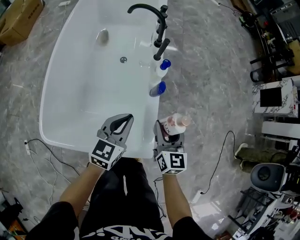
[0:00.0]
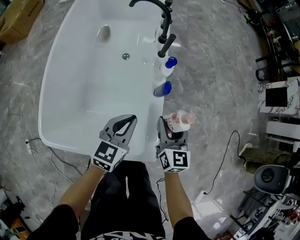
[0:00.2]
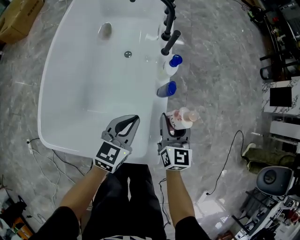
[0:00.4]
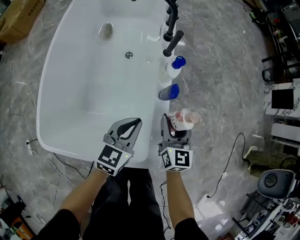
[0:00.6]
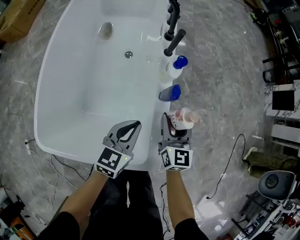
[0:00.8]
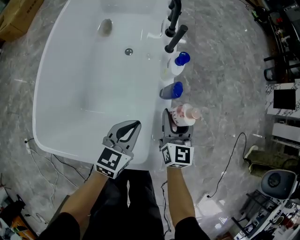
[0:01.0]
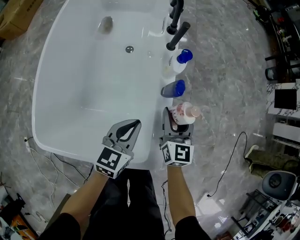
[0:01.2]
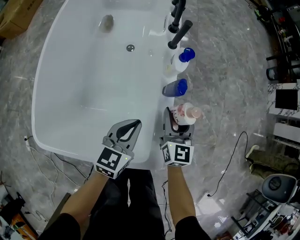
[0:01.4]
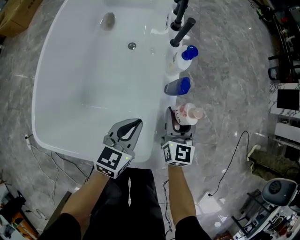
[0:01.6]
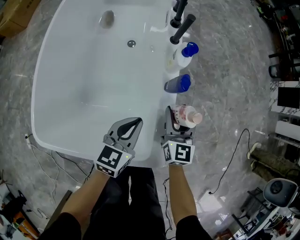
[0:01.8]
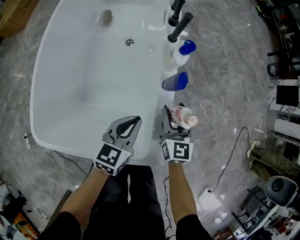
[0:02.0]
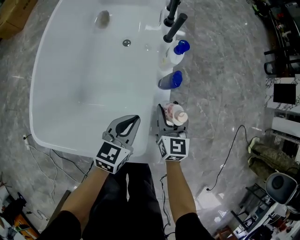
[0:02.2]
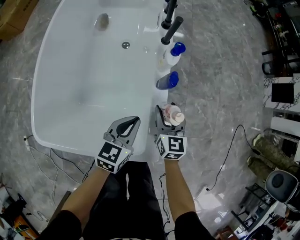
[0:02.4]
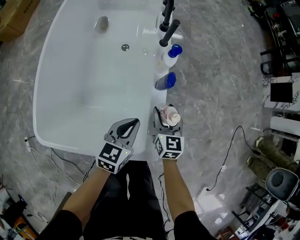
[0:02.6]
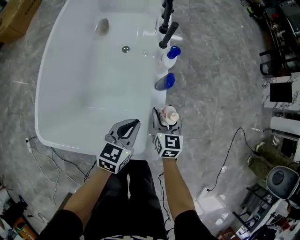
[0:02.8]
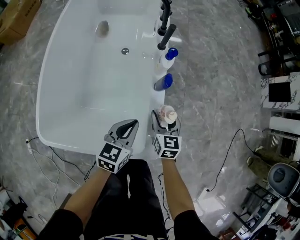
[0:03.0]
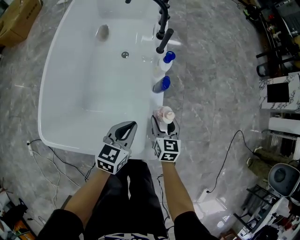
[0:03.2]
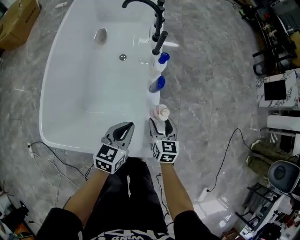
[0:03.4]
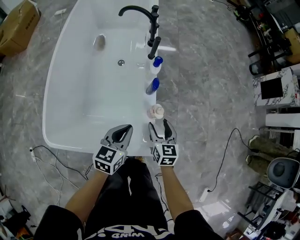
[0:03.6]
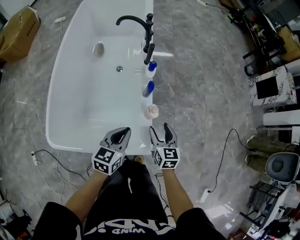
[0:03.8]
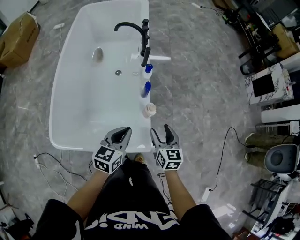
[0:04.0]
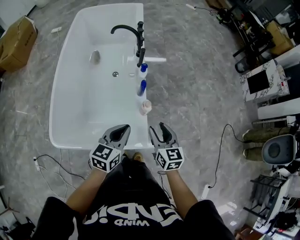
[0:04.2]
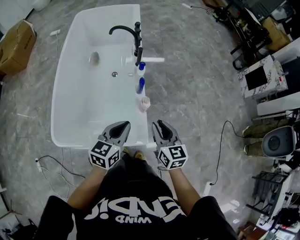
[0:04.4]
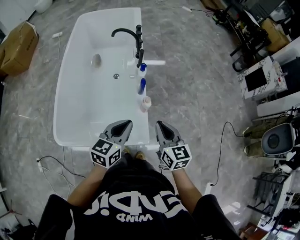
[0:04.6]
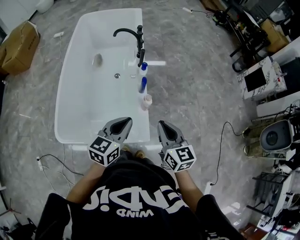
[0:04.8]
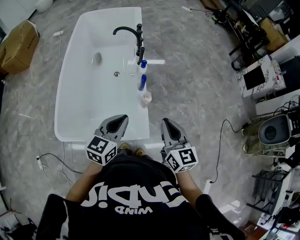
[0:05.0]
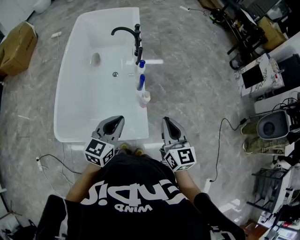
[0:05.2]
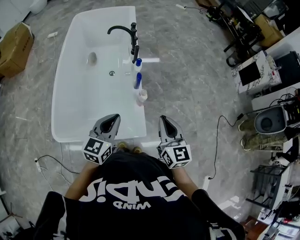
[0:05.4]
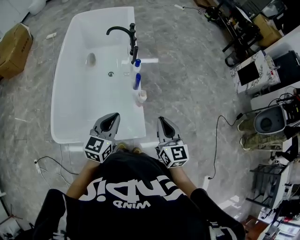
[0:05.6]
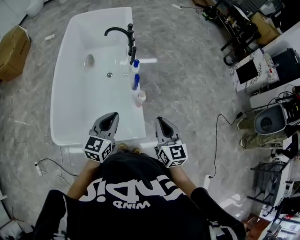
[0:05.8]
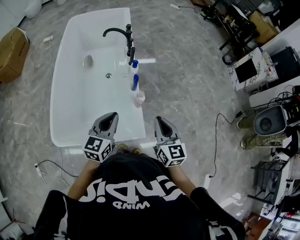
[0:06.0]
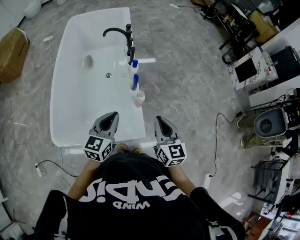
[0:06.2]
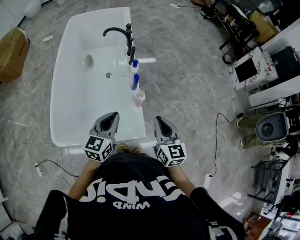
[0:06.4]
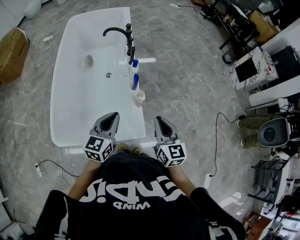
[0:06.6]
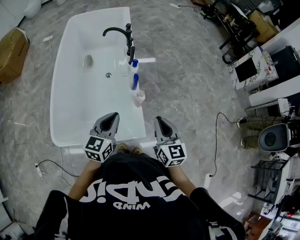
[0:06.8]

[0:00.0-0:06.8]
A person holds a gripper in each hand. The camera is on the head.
0:00.0 to 0:01.4: The left gripper travels downward by some 10 cm. Meanwhile the right gripper shifts roughly 15 cm downward and forward.
0:01.4 to 0:02.8: There are only small adjustments of the grippers.
0:02.8 to 0:04.0: The right gripper shifts approximately 20 cm upward, backward and to the right. The left gripper moves upward and backward, some 15 cm.
0:04.0 to 0:05.4: The left gripper shifts some 10 cm upward and backward. The right gripper travels upward and backward by approximately 20 cm, and closes up.
0:05.4 to 0:06.8: The grippers stay close to where they were, moving slightly.

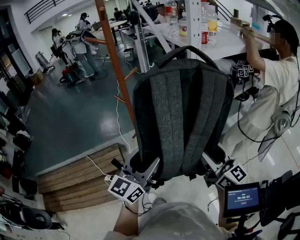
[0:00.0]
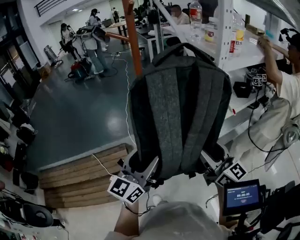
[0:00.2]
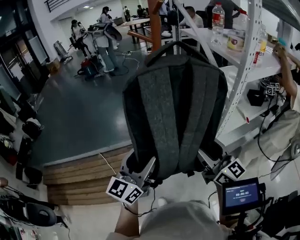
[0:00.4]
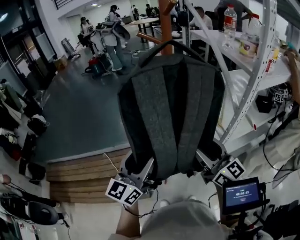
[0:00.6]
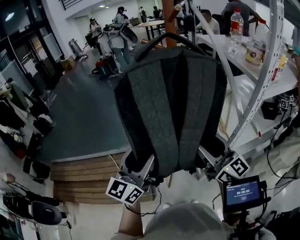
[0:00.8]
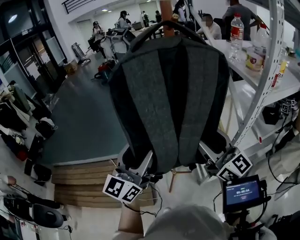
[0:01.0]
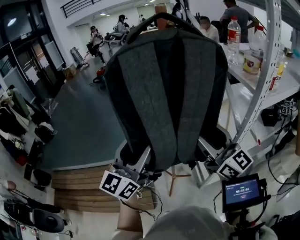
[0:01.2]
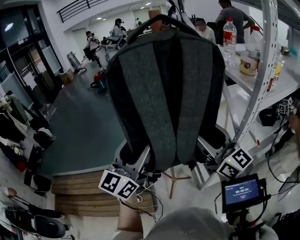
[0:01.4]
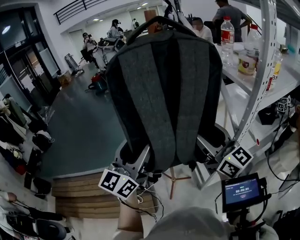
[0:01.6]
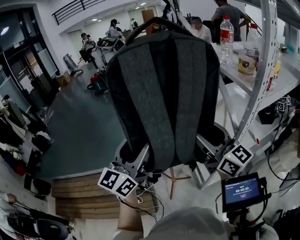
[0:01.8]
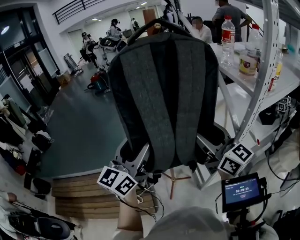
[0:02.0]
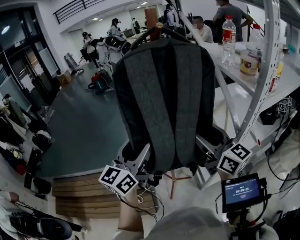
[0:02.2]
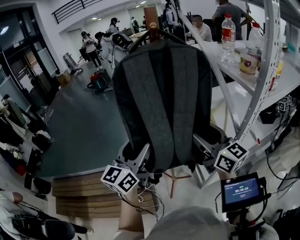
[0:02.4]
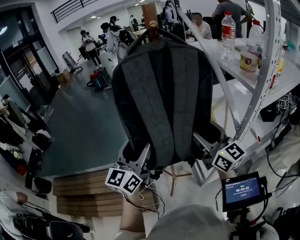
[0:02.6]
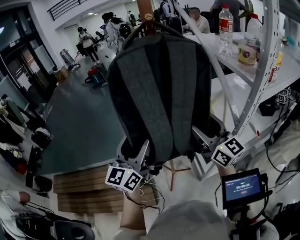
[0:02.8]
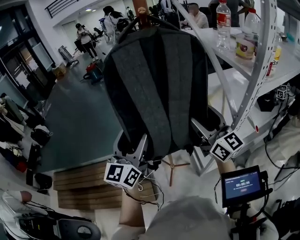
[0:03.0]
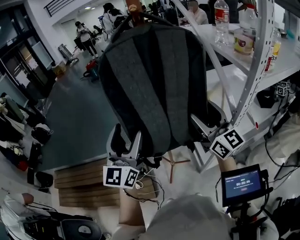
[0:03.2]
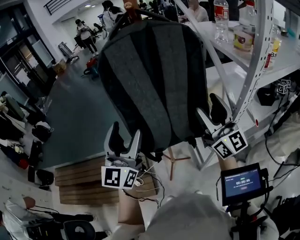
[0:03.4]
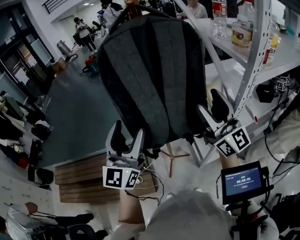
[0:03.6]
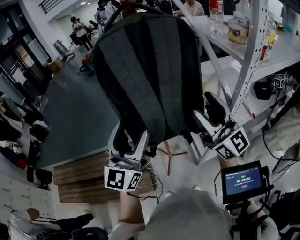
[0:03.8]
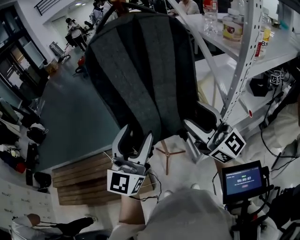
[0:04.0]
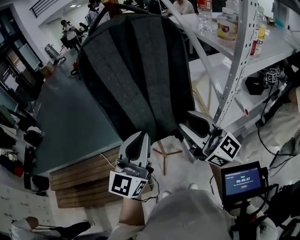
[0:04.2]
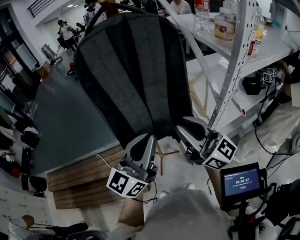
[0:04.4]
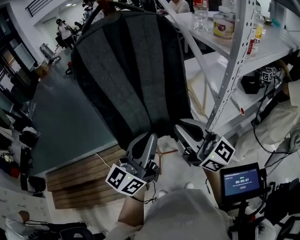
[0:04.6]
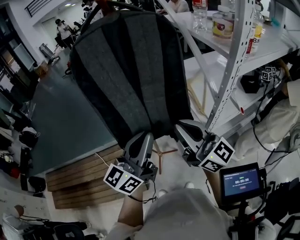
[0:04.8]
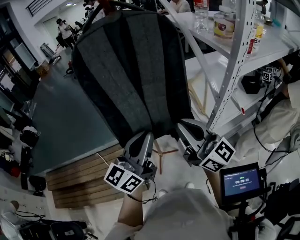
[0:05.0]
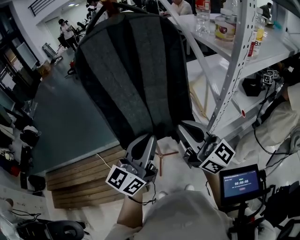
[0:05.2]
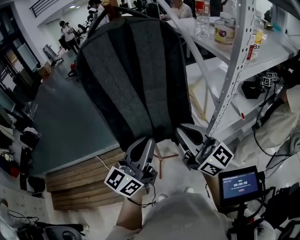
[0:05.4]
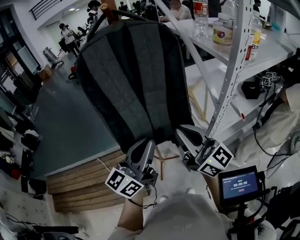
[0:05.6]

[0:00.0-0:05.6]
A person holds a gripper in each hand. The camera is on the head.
0:00.0 to 0:01.4: Both grippers move forward, to the left and upward, some 30 cm.
0:01.4 to 0:02.8: The right gripper moves some 5 cm, while the left gripper ends up roughly 5 cm from where it was.
0:02.8 to 0:04.2: The left gripper shifts roughly 10 cm backward and to the right, and closes up. The right gripper goes about 10 cm backward, and closes.
0:04.2 to 0:05.6: The right gripper closes up. The left gripper changes its angle by roughly 30 degrees.

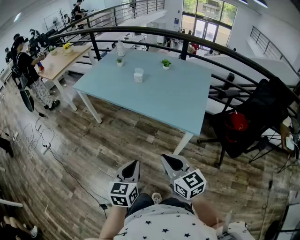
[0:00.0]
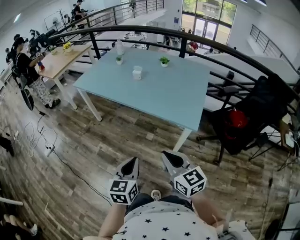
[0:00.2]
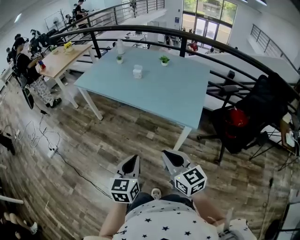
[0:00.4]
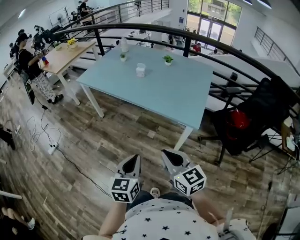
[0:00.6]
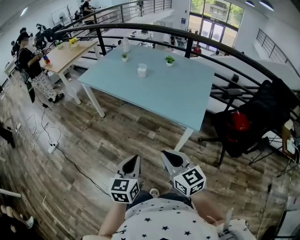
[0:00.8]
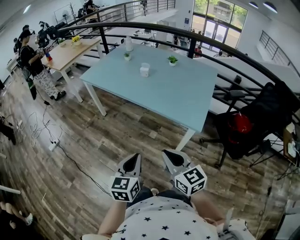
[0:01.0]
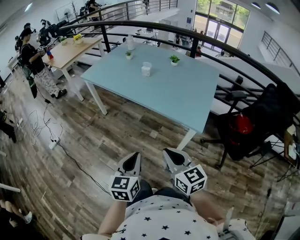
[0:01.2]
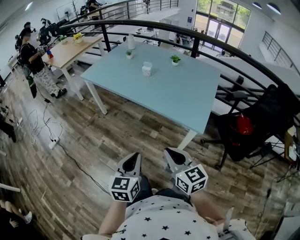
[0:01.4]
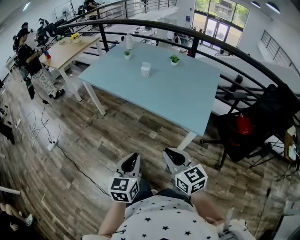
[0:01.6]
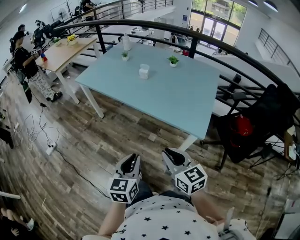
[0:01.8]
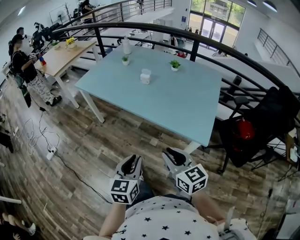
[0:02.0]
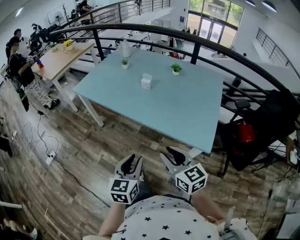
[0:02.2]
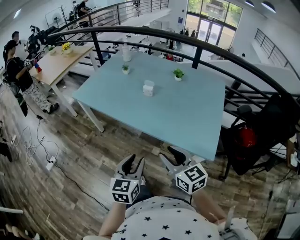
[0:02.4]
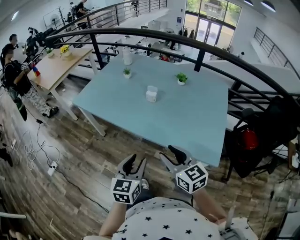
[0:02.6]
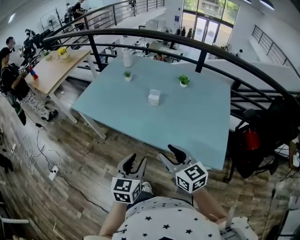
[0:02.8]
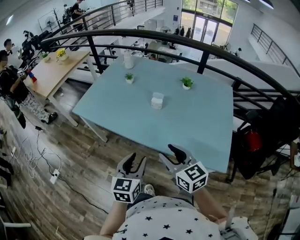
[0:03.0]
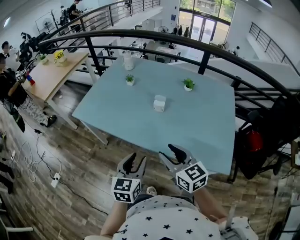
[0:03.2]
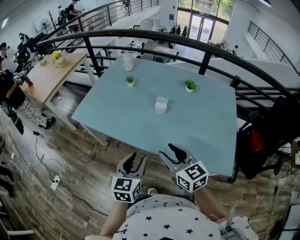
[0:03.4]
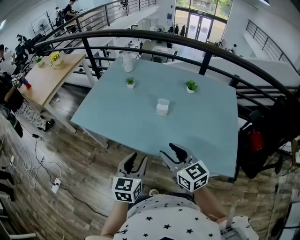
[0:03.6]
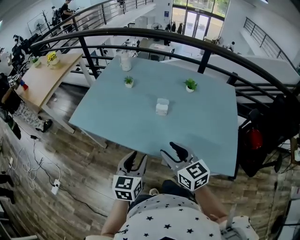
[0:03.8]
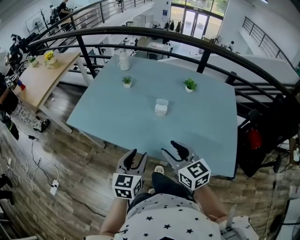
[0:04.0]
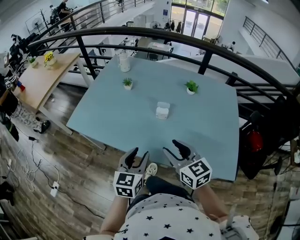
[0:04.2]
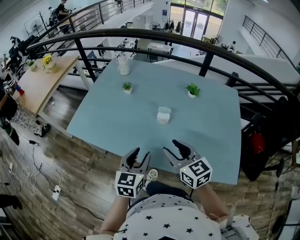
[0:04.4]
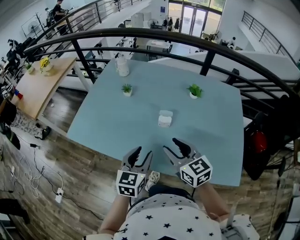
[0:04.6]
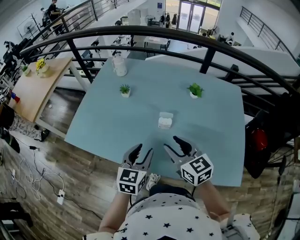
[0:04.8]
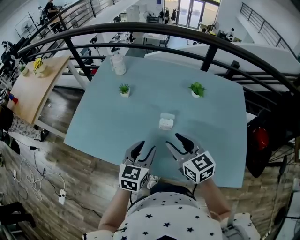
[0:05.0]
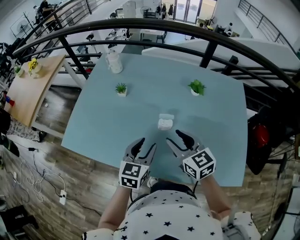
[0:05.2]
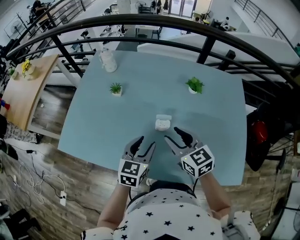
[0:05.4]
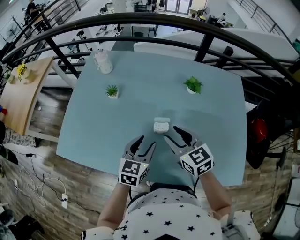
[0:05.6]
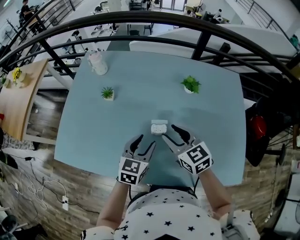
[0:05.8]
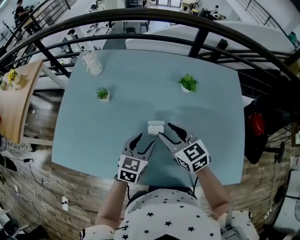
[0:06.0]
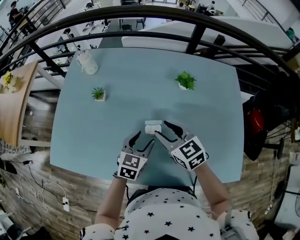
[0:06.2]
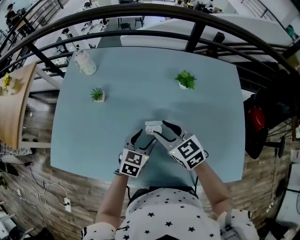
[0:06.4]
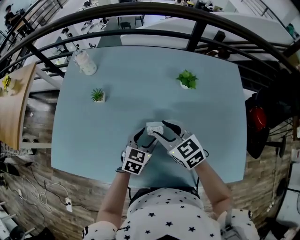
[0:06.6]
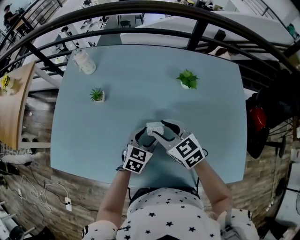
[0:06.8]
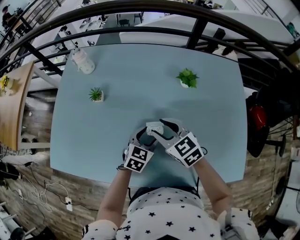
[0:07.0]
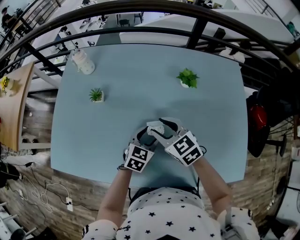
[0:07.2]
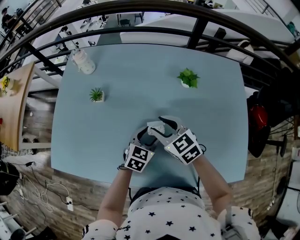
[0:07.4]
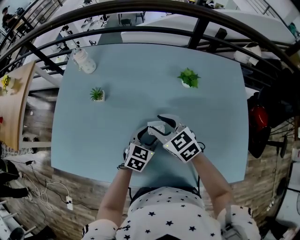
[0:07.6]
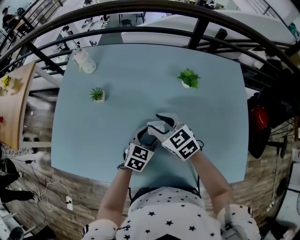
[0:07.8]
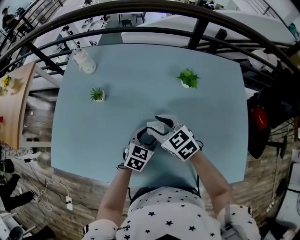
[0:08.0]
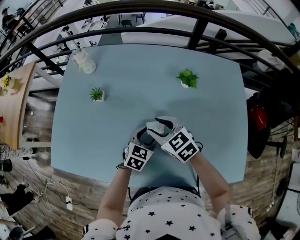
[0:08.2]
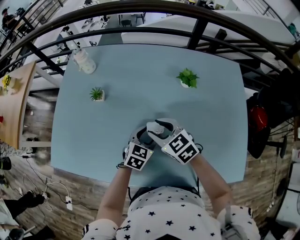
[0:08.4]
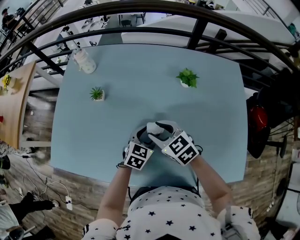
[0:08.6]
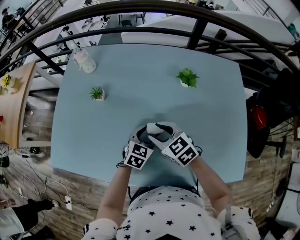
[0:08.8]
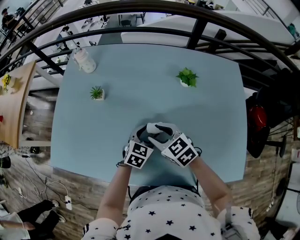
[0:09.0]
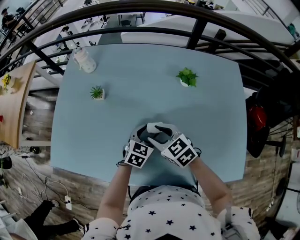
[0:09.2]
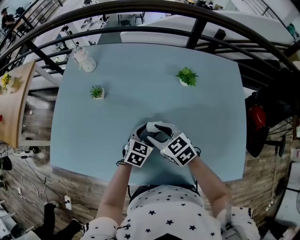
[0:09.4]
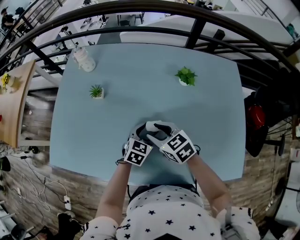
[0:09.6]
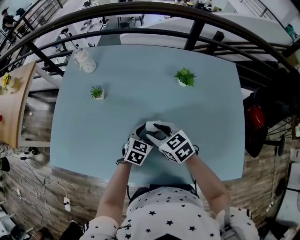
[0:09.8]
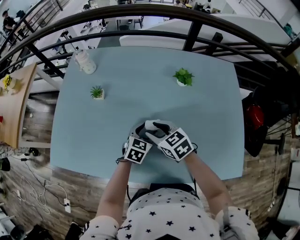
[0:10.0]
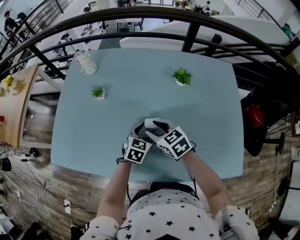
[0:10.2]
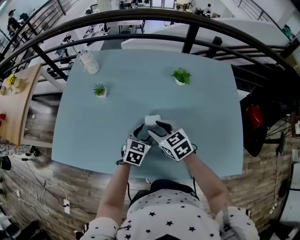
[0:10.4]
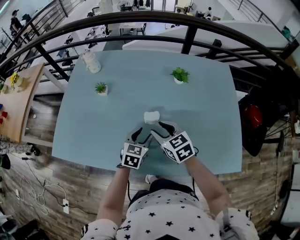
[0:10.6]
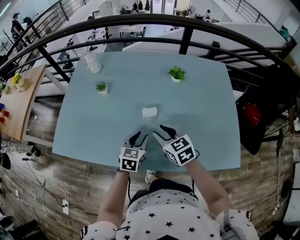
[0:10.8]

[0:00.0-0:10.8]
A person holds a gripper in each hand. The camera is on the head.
0:00.0 to 0:01.6: The grippers stay close to where they were, moving slightly.
0:01.6 to 0:03.0: The two grippers go roughly 35 cm forward. The right gripper opens up. The left gripper opens.
0:03.0 to 0:04.6: The two grippers go about 20 cm forward.
0:04.6 to 0:06.2: The right gripper heads forward and downward, covering some 20 cm; the left gripper heads forward, downward and to the right, covering some 20 cm, and swivels approximately 20 degrees.
0:06.2 to 0:07.8: The right gripper ends up roughly 5 cm from where it was. The left gripper goes some 5 cm downward.
0:07.8 to 0:09.2: The right gripper heads backward, covering roughly 5 cm.
0:09.2 to 0:10.8: The two grippers go about 10 cm backward. The left gripper closes.
